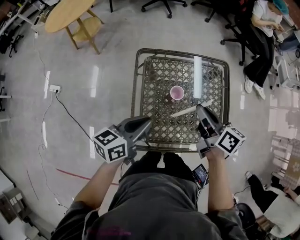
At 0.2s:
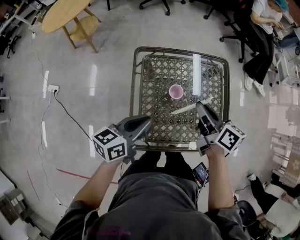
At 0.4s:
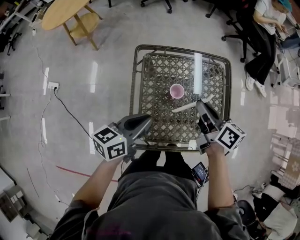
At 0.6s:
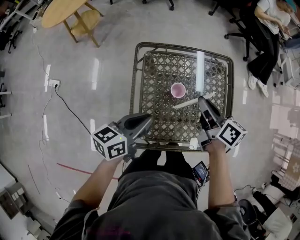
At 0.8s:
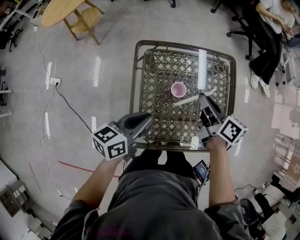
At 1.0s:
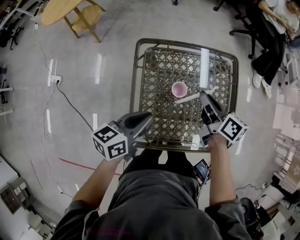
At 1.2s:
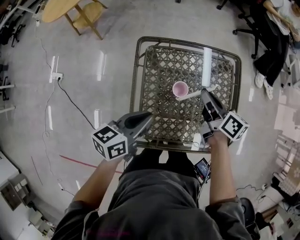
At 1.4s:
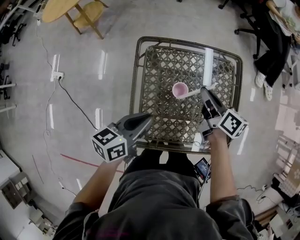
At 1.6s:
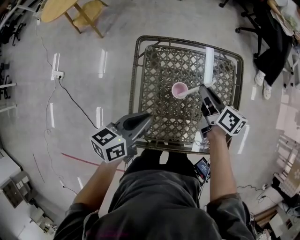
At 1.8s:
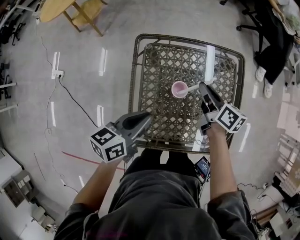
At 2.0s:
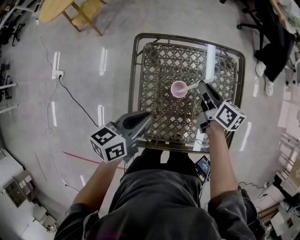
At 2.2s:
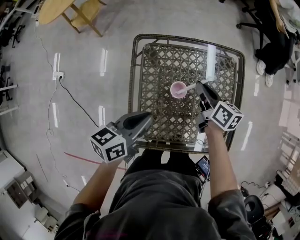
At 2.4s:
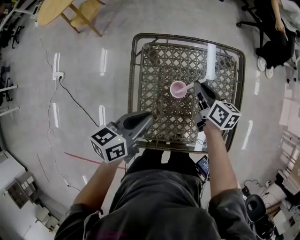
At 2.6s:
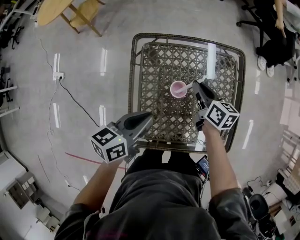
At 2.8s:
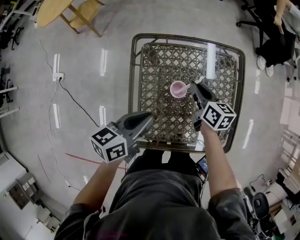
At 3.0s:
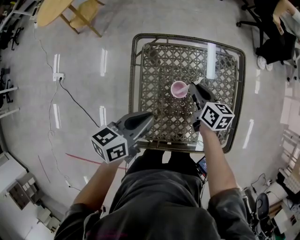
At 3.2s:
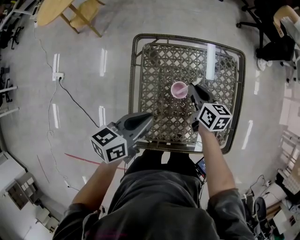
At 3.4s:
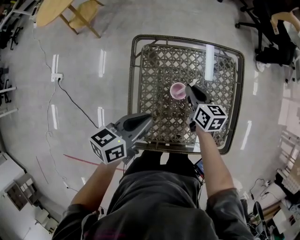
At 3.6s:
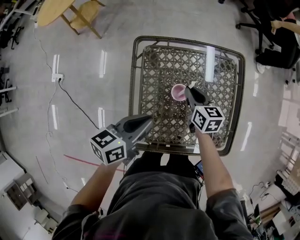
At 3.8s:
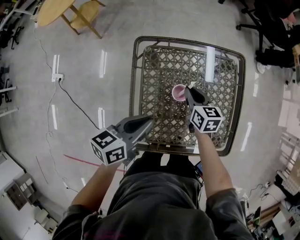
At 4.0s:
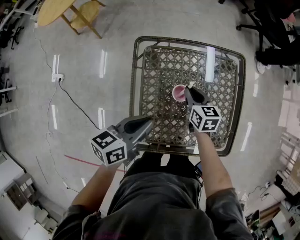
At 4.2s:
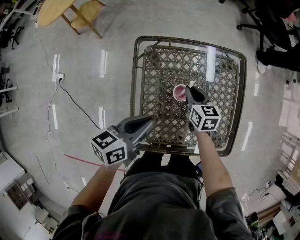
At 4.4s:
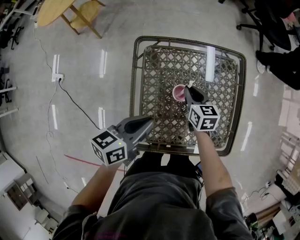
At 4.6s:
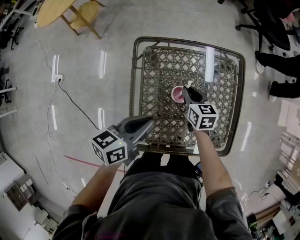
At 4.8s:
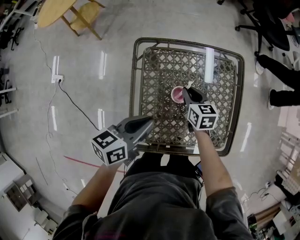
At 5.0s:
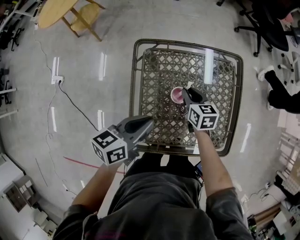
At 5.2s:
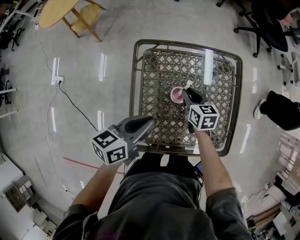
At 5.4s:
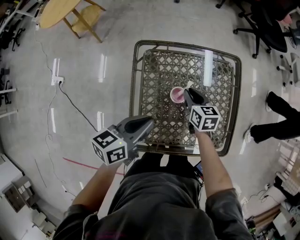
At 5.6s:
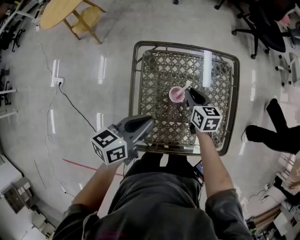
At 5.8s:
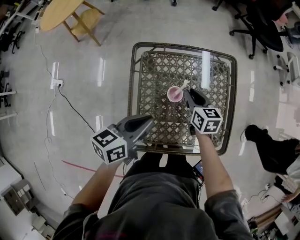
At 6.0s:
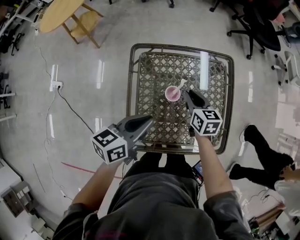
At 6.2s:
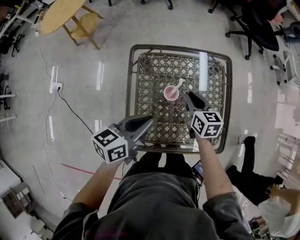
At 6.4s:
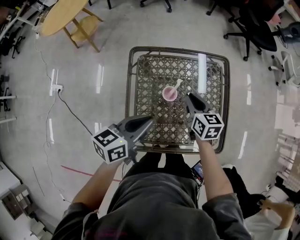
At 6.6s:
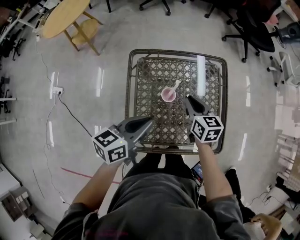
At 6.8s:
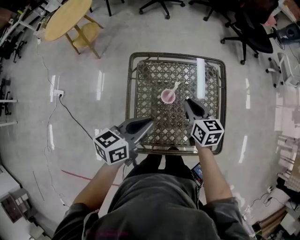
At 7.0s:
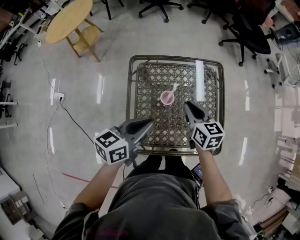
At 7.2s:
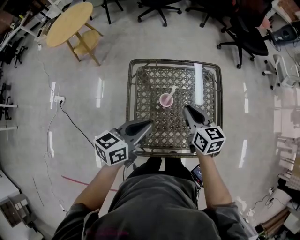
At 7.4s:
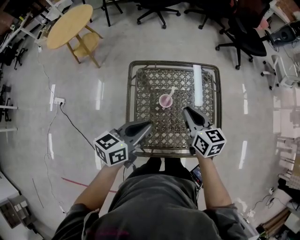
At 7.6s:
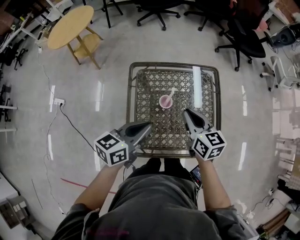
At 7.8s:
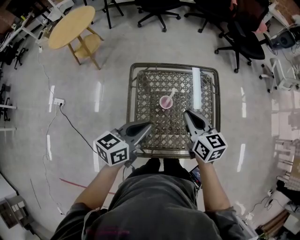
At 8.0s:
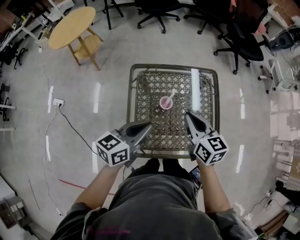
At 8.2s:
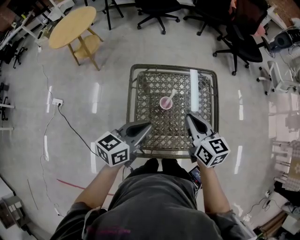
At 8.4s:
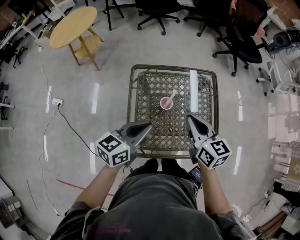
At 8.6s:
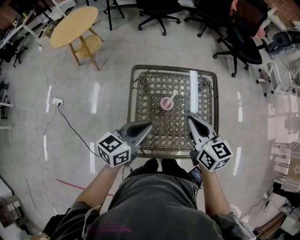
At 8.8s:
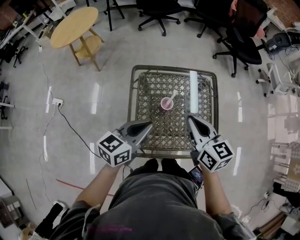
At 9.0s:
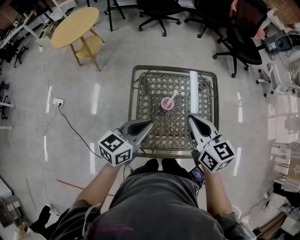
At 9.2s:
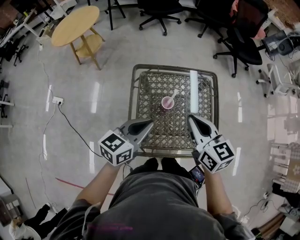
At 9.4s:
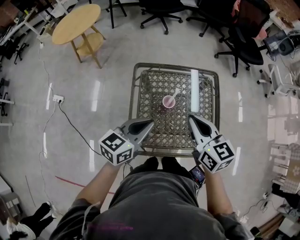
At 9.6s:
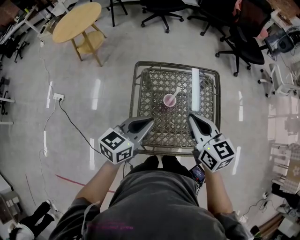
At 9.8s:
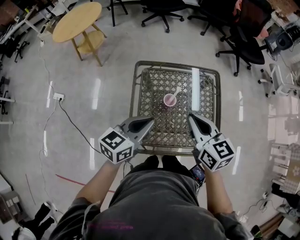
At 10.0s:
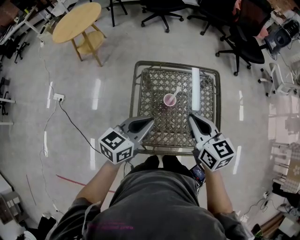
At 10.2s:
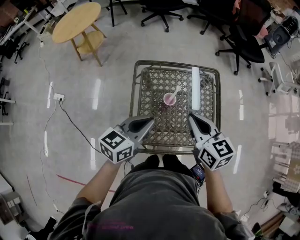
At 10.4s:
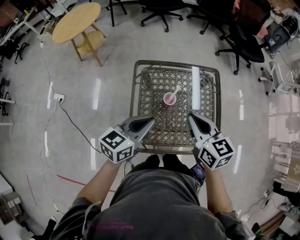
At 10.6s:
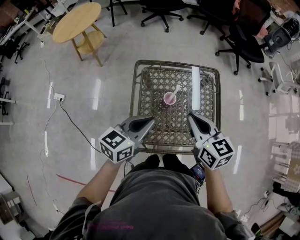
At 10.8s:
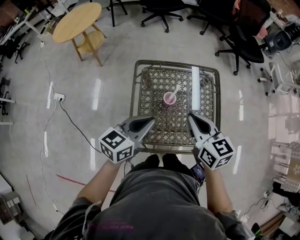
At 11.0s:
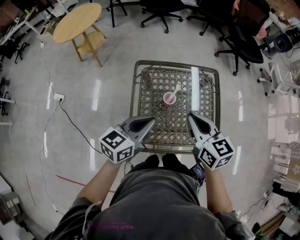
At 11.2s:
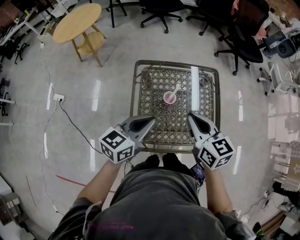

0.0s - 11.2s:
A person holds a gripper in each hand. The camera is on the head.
0.0s - 1.6s: The right gripper travels downward and forward by some 15 cm; the left gripper ends up about 5 cm from where it was.
1.6s - 3.2s: The right gripper moves downward, roughly 5 cm.
3.2s - 4.8s: The grippers move only a little.
4.8s - 6.4s: The left gripper ends up about 5 cm from where it was; the right gripper moves upward and to the right, roughly 10 cm.
6.4s - 8.0s: The left gripper shifts about 5 cm upward. The right gripper heads upward and backward, covering approximately 15 cm.
8.0s - 9.6s: The right gripper shifts approximately 5 cm upward.
9.6s - 11.2s: There are only small adjustments of the grippers.

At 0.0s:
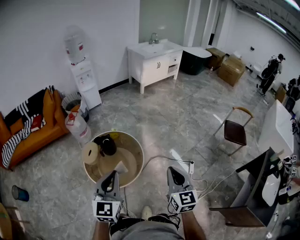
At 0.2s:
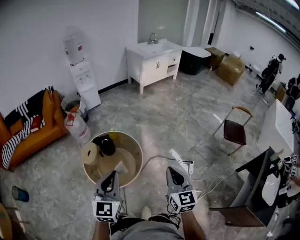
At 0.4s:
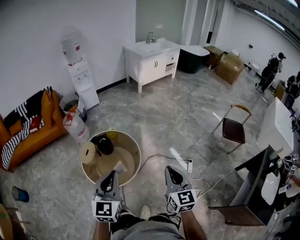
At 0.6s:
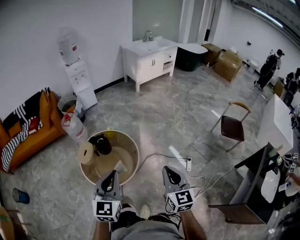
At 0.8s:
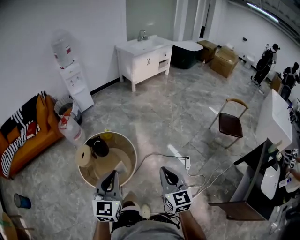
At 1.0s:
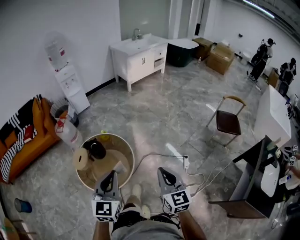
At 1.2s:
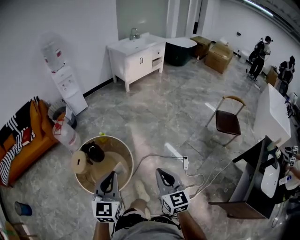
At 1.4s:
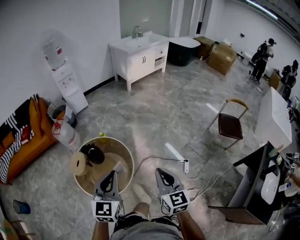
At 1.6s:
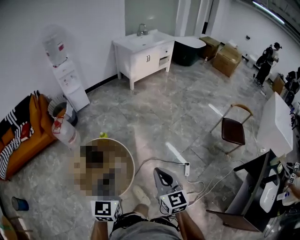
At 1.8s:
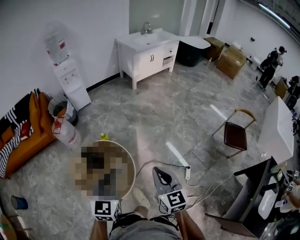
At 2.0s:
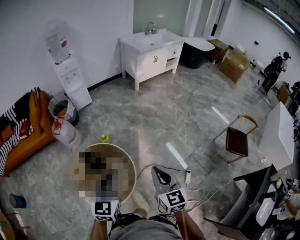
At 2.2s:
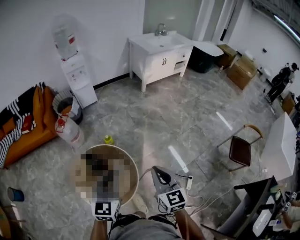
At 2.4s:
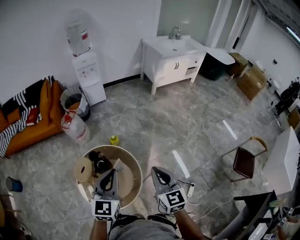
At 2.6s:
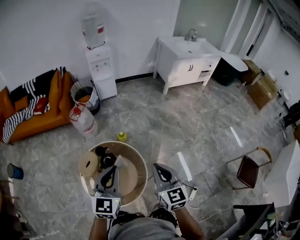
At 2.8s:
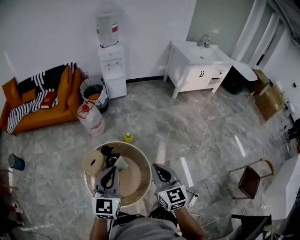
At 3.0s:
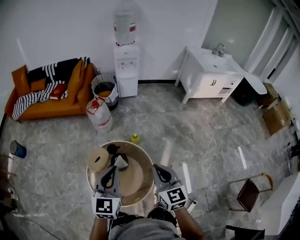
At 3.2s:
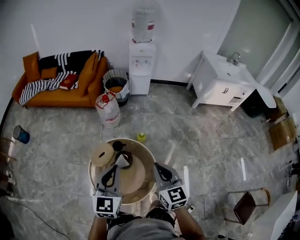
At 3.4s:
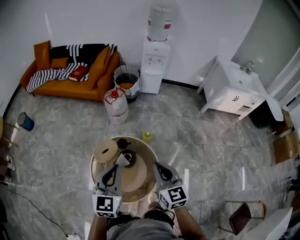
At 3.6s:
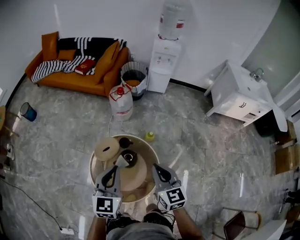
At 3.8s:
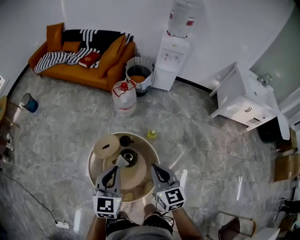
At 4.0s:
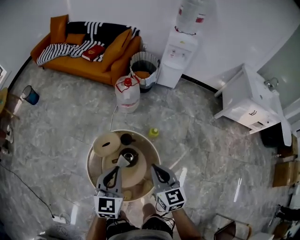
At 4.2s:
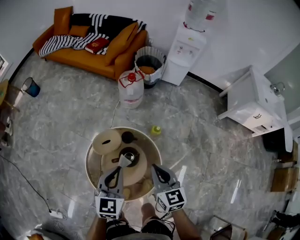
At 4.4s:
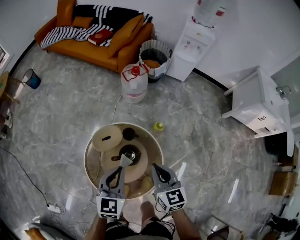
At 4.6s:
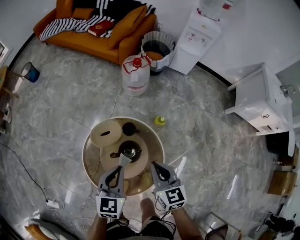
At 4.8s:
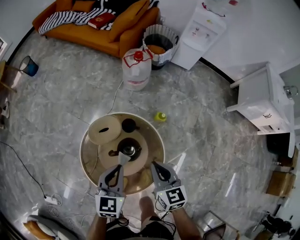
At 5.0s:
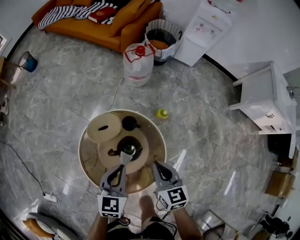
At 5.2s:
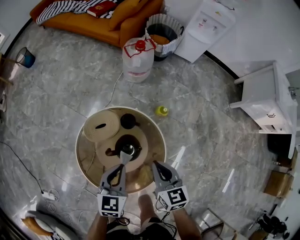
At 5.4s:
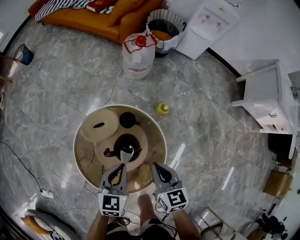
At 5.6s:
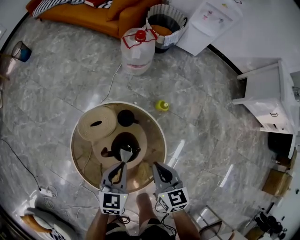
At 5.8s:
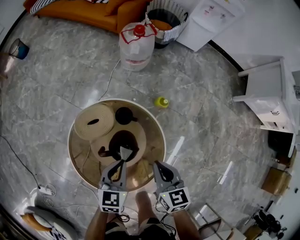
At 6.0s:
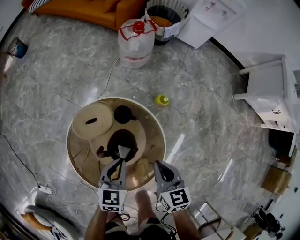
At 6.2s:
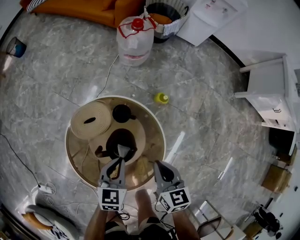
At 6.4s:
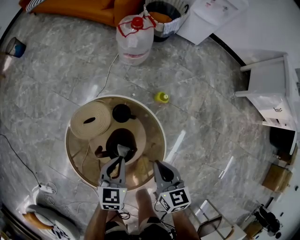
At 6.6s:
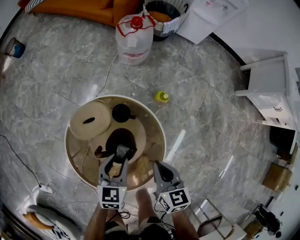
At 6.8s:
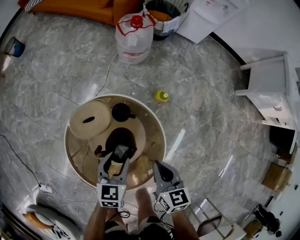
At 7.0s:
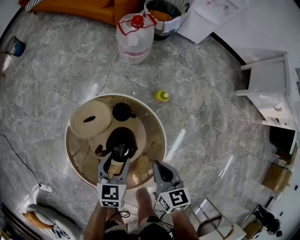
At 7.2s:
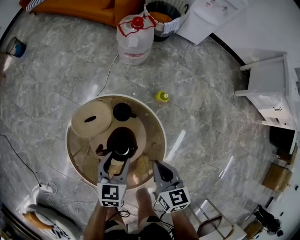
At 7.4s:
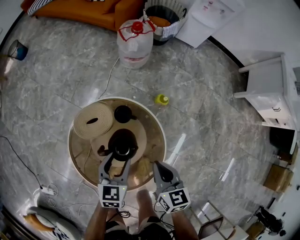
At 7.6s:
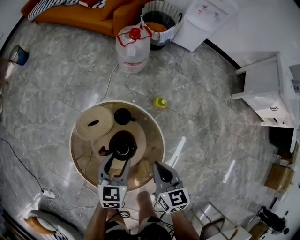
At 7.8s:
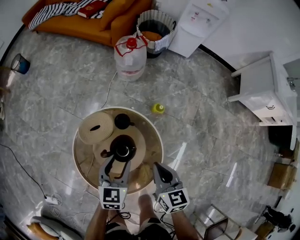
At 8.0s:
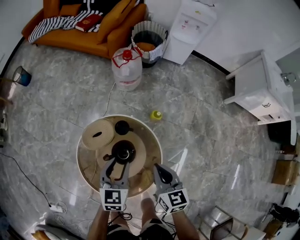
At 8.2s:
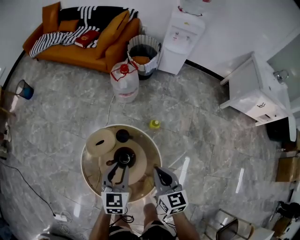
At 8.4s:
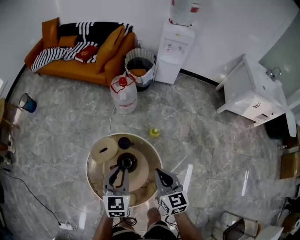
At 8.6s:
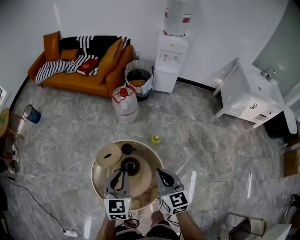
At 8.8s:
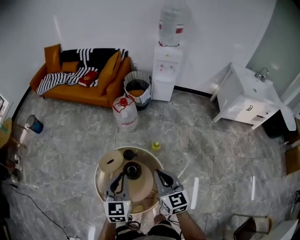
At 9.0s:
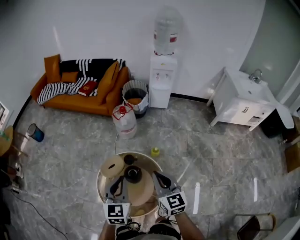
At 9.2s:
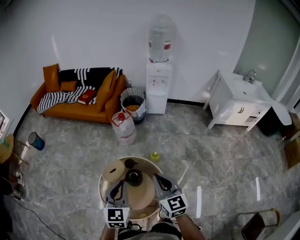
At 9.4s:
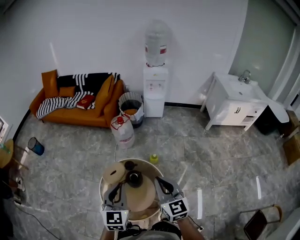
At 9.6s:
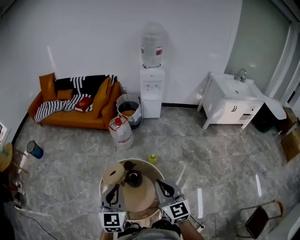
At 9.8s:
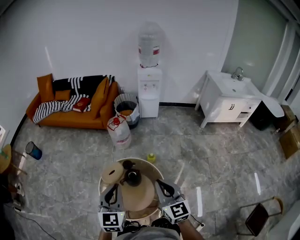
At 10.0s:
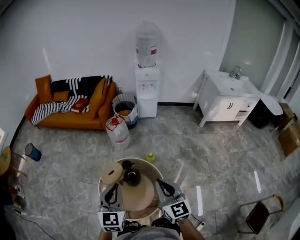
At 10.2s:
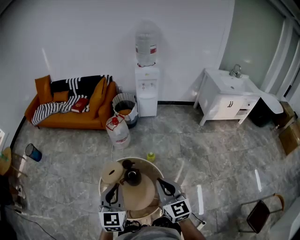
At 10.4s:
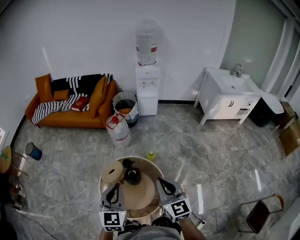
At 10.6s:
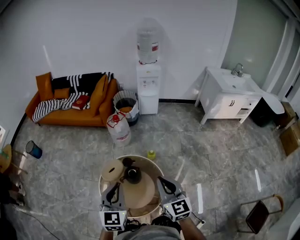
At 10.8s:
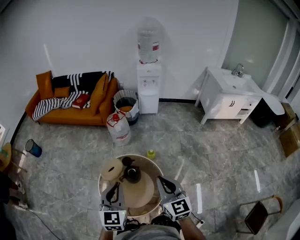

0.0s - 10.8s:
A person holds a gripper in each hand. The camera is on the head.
0.0s - 1.6s: The right gripper shifts about 15 cm forward, while the left gripper travels forward and to the right by some 20 cm.
1.6s - 3.0s: The right gripper ends up roughly 35 cm from where it was, and changes its angle by some 30 degrees. The left gripper changes place by about 25 cm, and rotates about 30 degrees.
3.0s - 4.6s: Both grippers travel together downward, about 25 cm. The right gripper turns by roughly 30 degrees, while the left gripper turns by approximately 30 degrees.
4.6s - 6.2s: The two grippers go about 20 cm downward.
6.2s - 7.8s: The two grippers go approximately 10 cm upward. The left gripper opens its fingers.
7.8s - 9.2s: Both grippers travel together upward, approximately 35 cm. The right gripper rotates about 30 degrees; the left gripper swivels some 20 degrees, and closes.
9.2s - 10.8s: Both grippers travel together backward, some 5 cm.

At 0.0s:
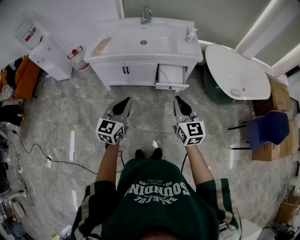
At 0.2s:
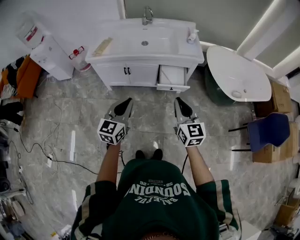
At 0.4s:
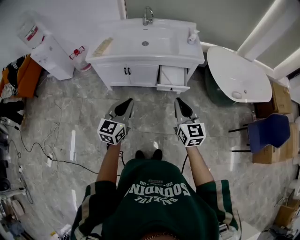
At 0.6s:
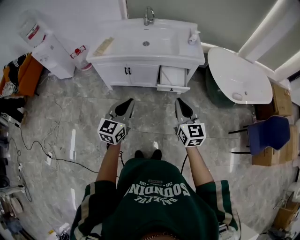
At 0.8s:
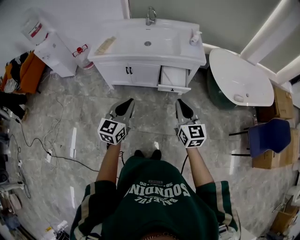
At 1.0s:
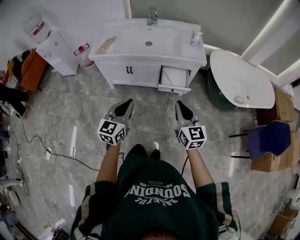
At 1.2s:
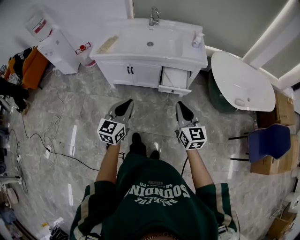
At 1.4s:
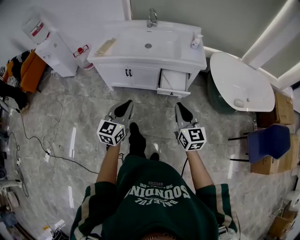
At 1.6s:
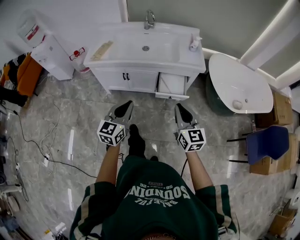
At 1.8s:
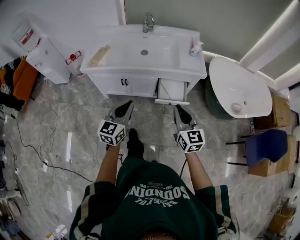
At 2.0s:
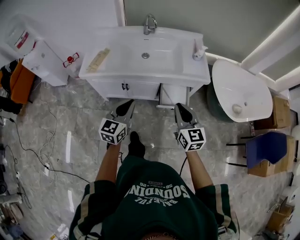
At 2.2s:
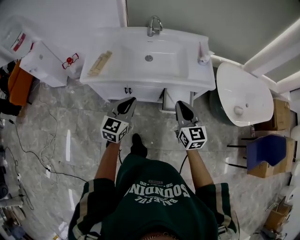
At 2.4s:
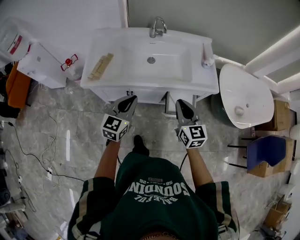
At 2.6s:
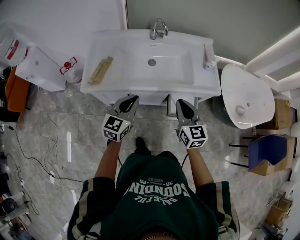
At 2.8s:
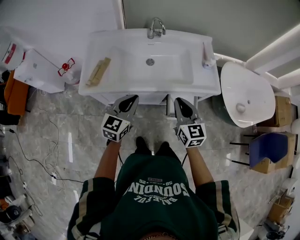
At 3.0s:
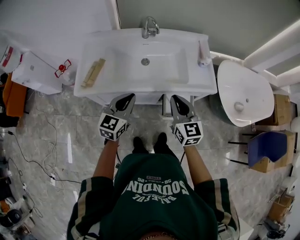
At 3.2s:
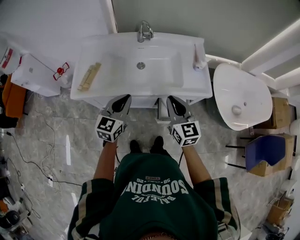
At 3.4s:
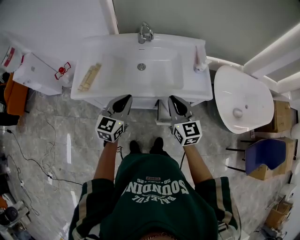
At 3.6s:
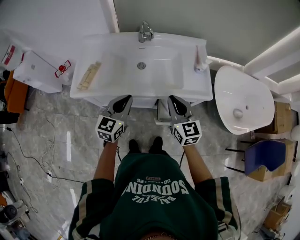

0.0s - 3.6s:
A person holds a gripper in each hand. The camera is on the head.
0.0s - 1.8s: Both grippers travel together forward, roughly 10 cm.
1.8s - 3.6s: The grippers both shift forward by roughly 25 cm.
